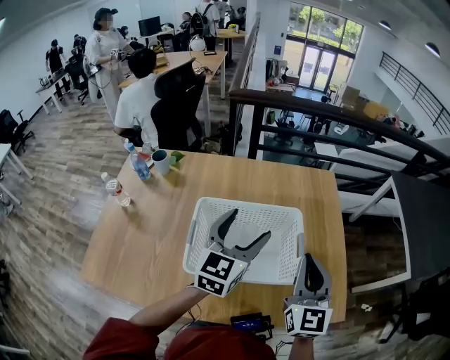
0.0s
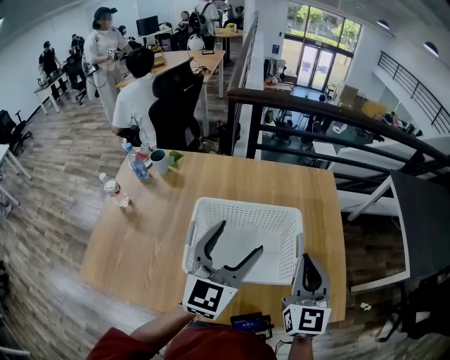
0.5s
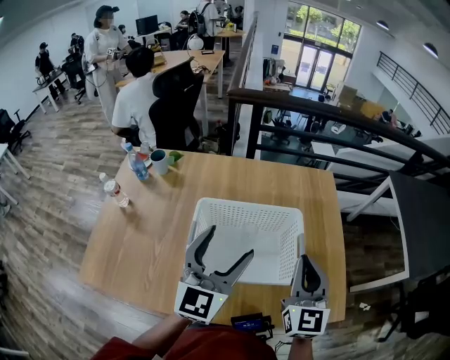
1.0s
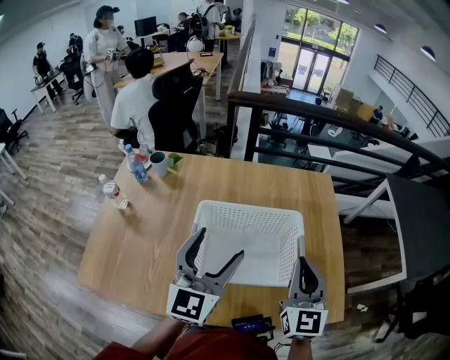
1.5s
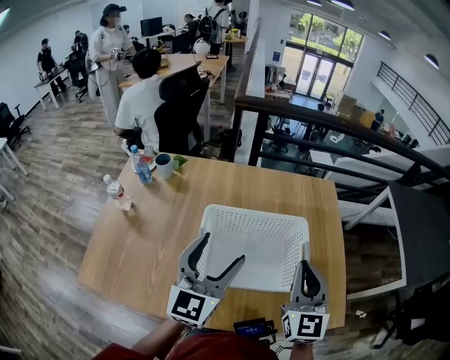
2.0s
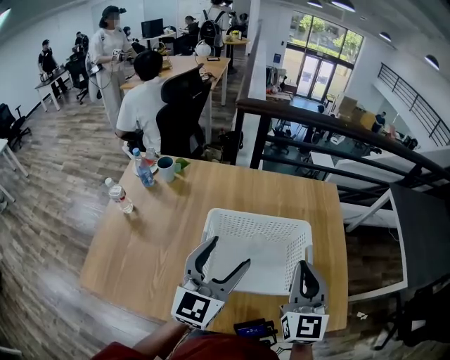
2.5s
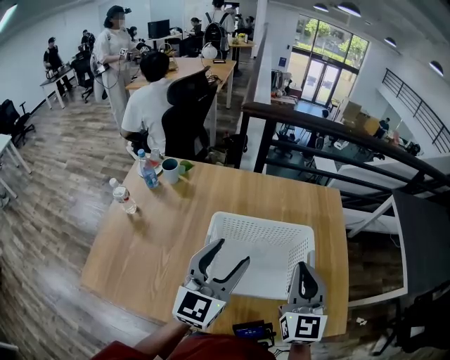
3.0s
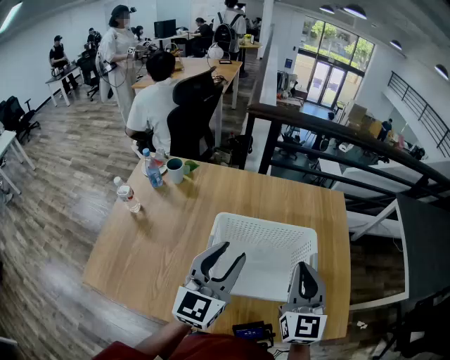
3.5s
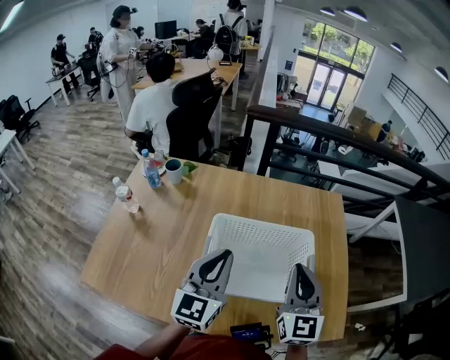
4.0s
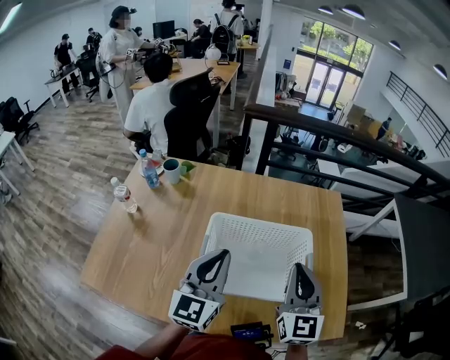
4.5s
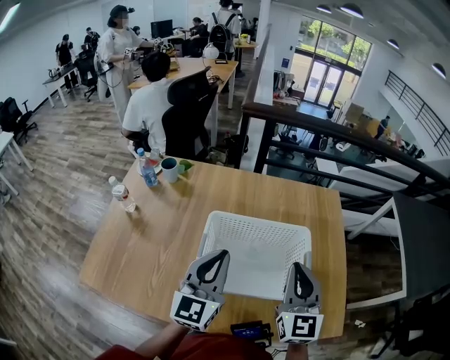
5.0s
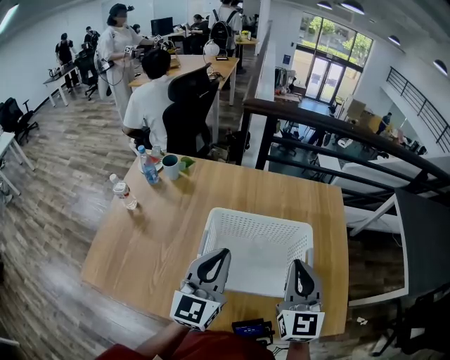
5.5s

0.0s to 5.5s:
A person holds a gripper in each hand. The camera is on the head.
0.0s to 2.0s: The left gripper moves to the left and backward, some 10 cm.
2.0s to 3.5s: The left gripper closes up.
3.5s to 5.5s: The left gripper closes up.

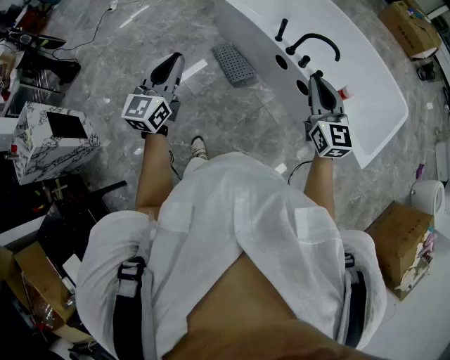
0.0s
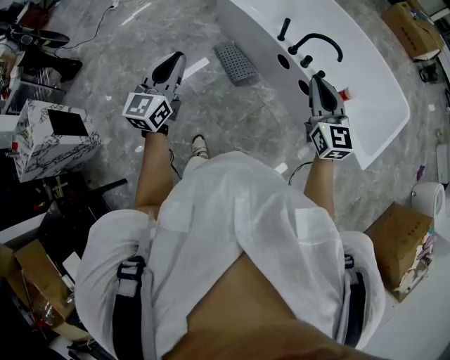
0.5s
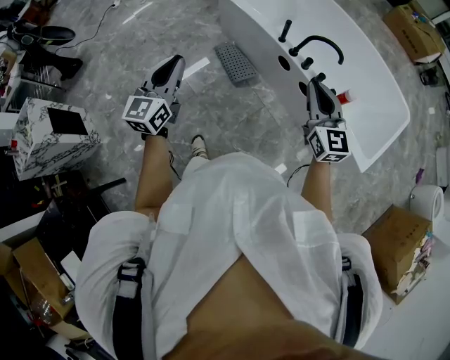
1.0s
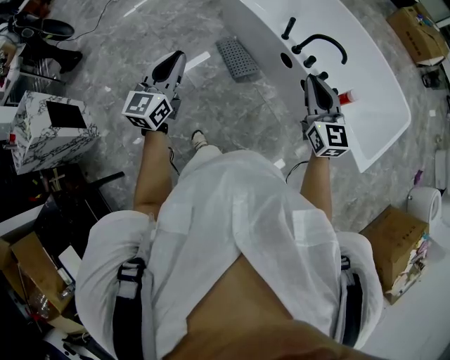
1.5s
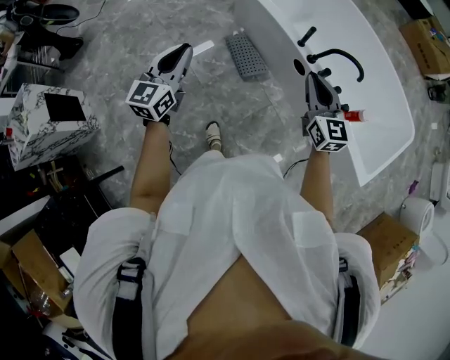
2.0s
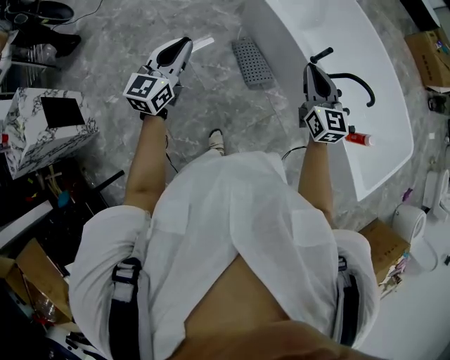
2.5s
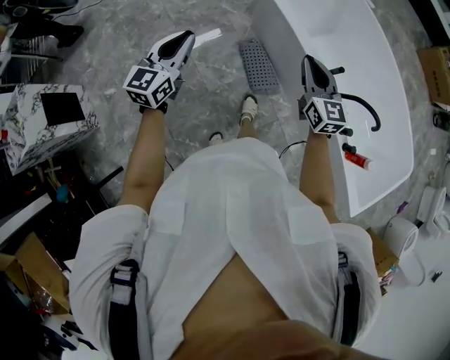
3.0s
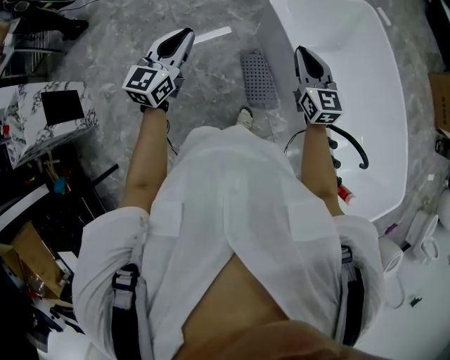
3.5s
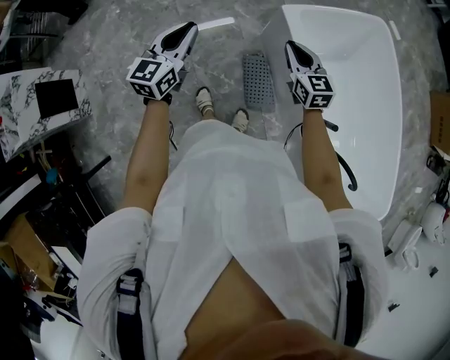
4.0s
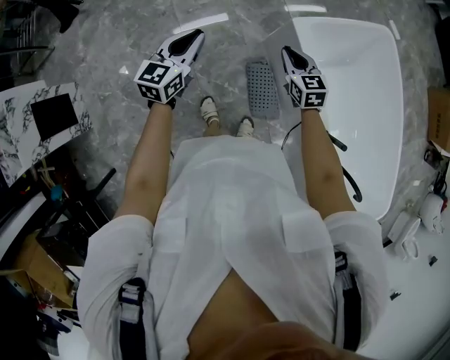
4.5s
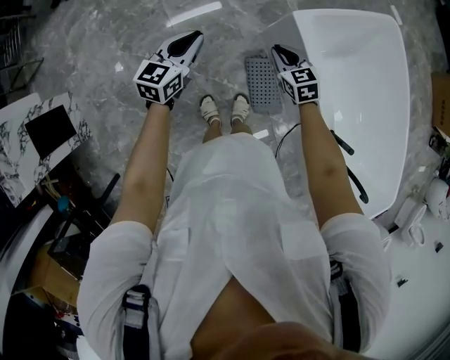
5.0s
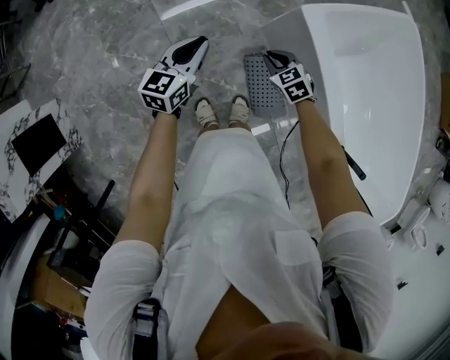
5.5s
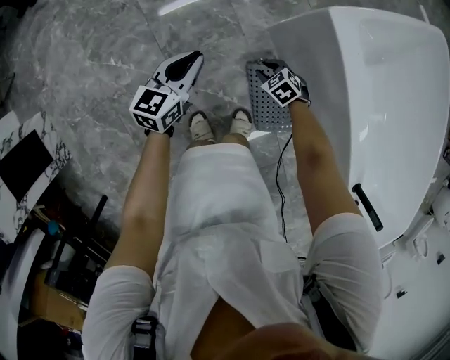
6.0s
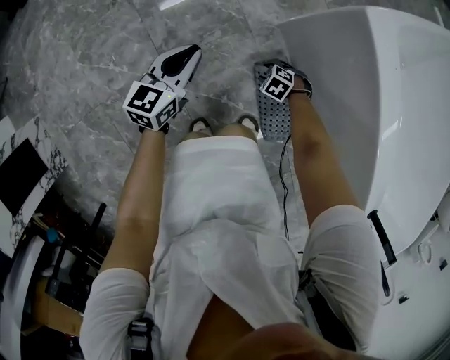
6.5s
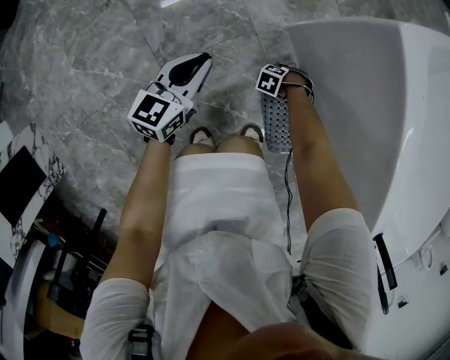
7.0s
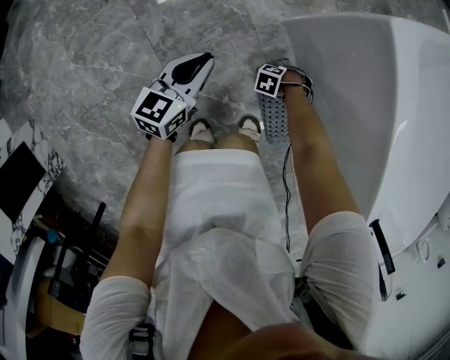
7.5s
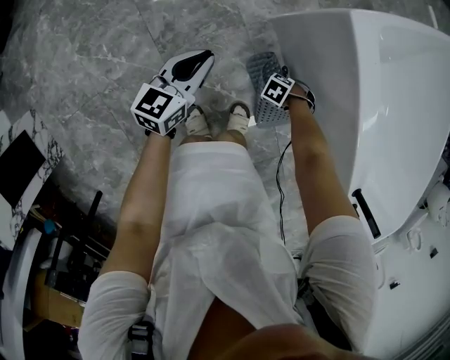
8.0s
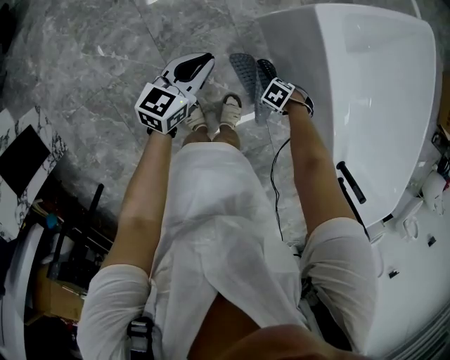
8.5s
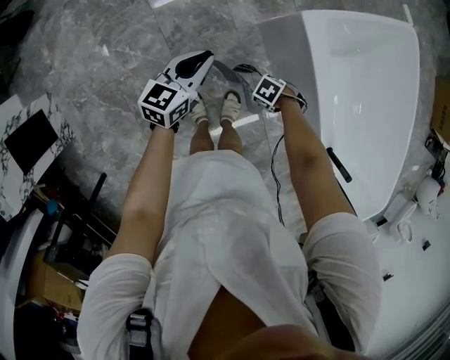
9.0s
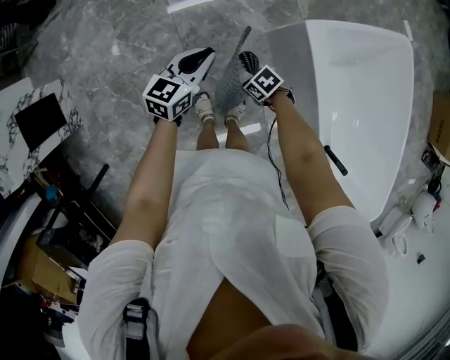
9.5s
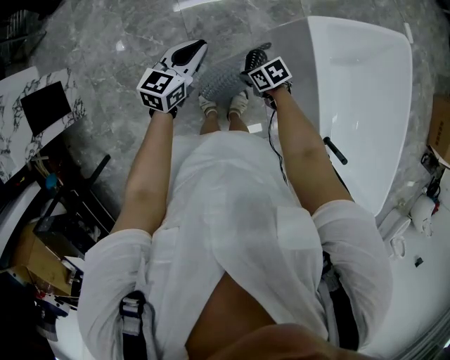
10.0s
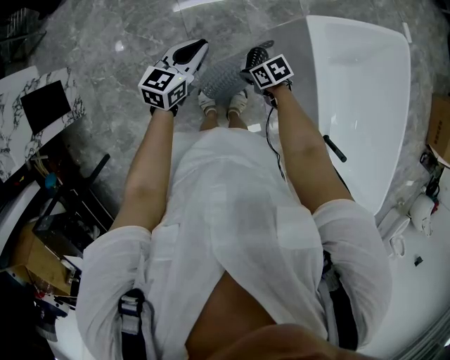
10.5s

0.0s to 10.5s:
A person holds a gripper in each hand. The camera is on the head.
0.0s to 2.0s: The left gripper is displaced forward and to the left by some 10 cm; the right gripper heads forward, to the left and downward, covering some 15 cm.
2.0s to 4.0s: The pair of grippers is taken forward, some 50 cm. The right gripper turns by about 30 degrees.
4.0s to 6.5s: The grippers both shift downward by approximately 60 cm. The right gripper tilts its fingers roughly 50 degrees downward, and opens. Meanwhile the left gripper turns by about 20 degrees.
6.5s to 8.5s: The grippers both shift upward by some 20 cm. The right gripper turns by some 30 degrees, and closes.
8.5s to 10.5s: Both grippers move upward, approximately 25 cm. The right gripper rotates approximately 40 degrees.

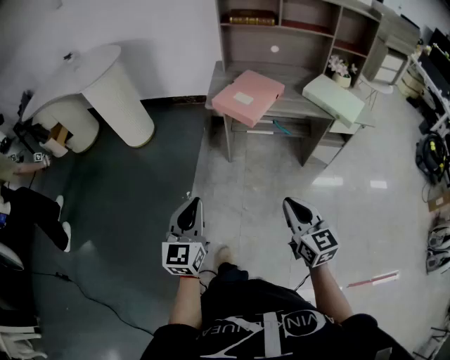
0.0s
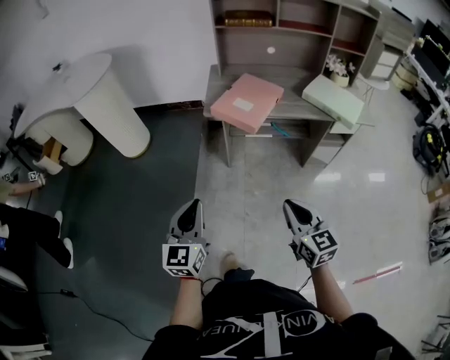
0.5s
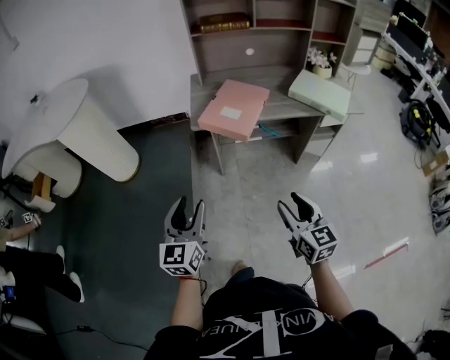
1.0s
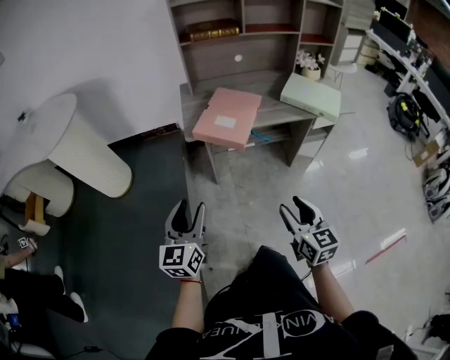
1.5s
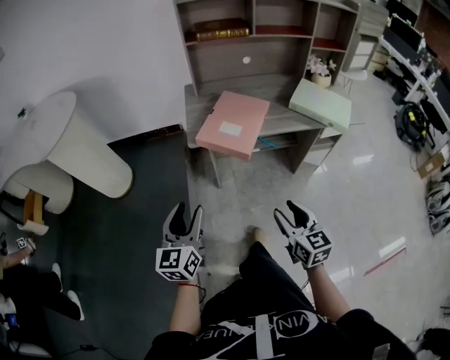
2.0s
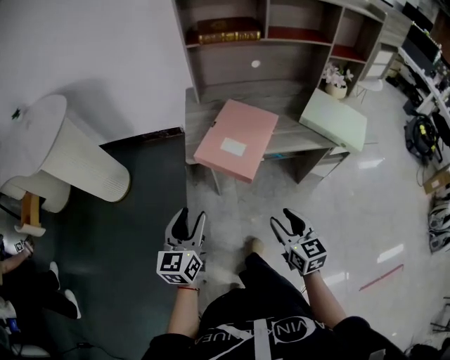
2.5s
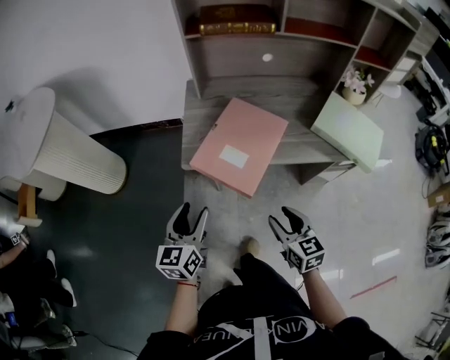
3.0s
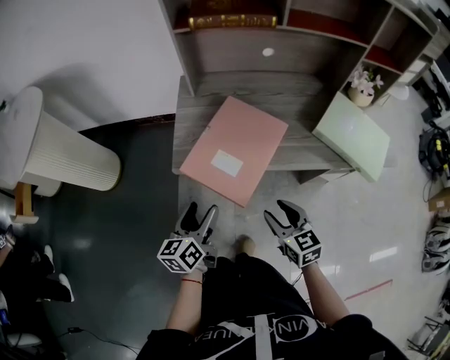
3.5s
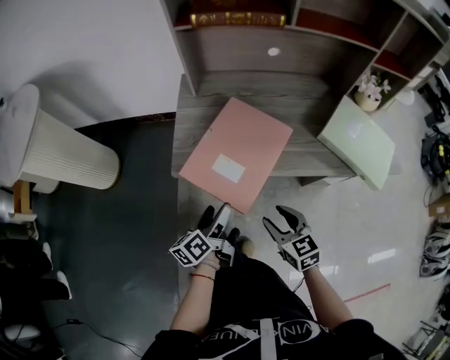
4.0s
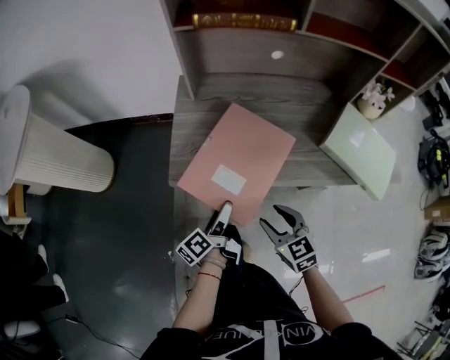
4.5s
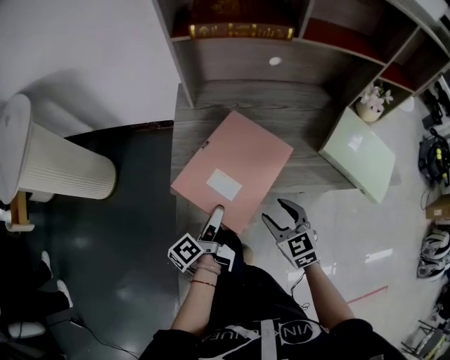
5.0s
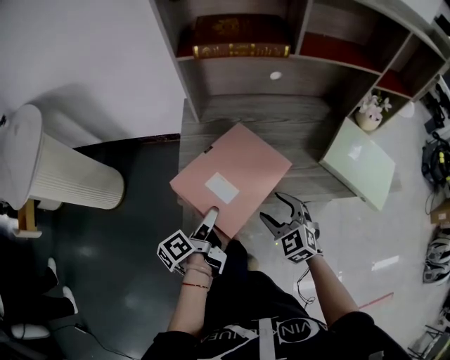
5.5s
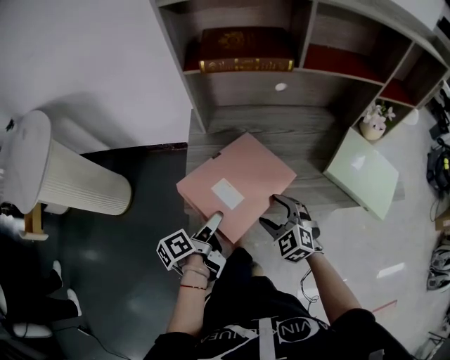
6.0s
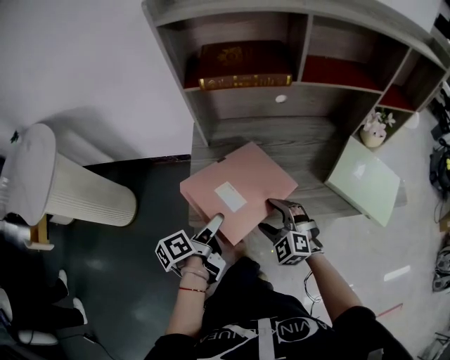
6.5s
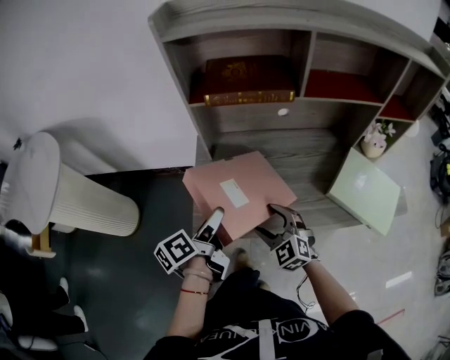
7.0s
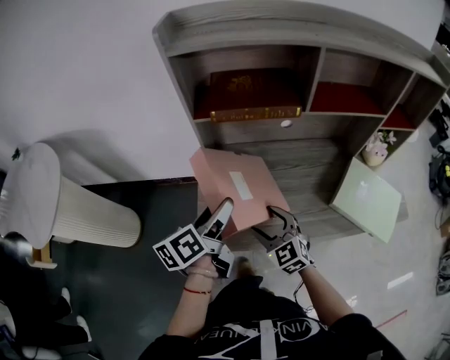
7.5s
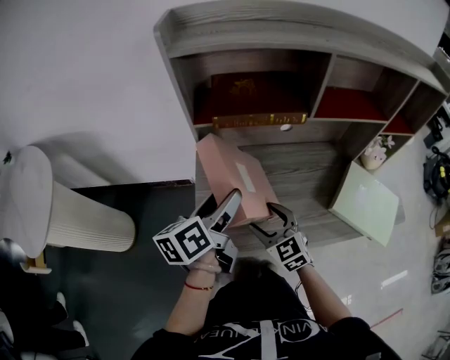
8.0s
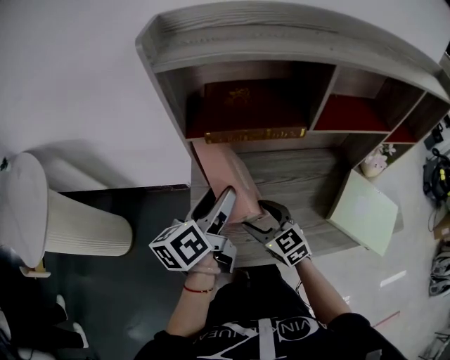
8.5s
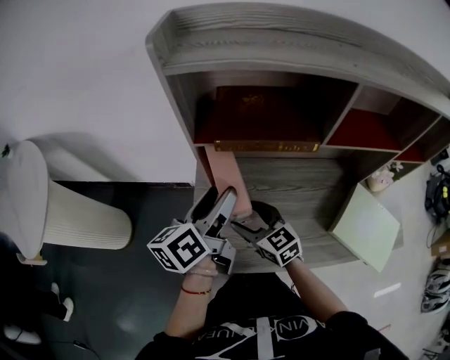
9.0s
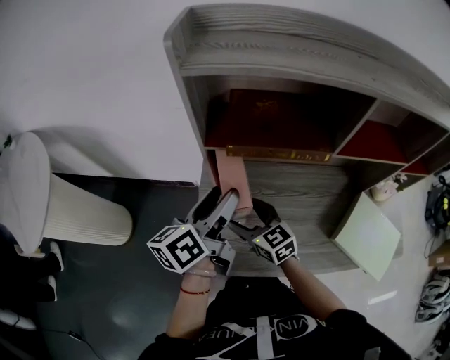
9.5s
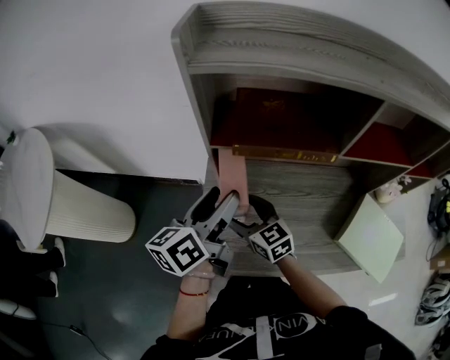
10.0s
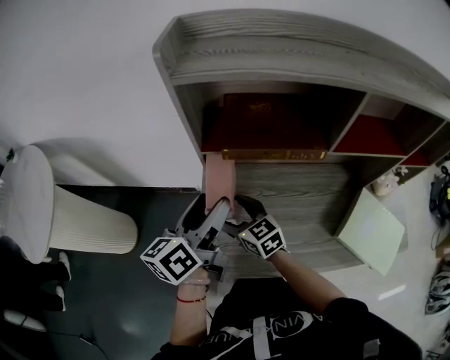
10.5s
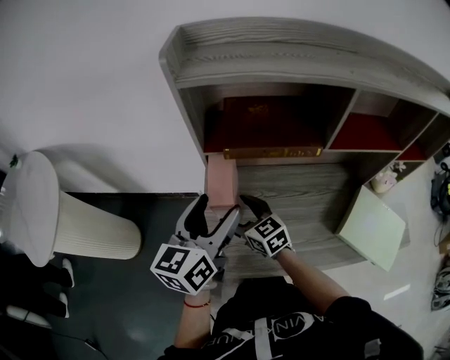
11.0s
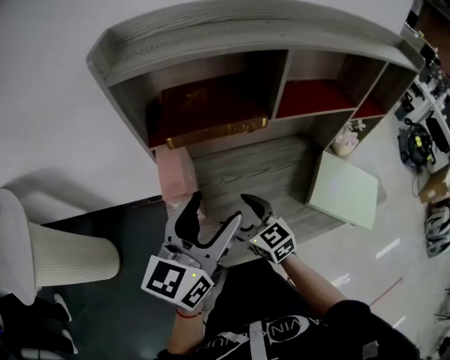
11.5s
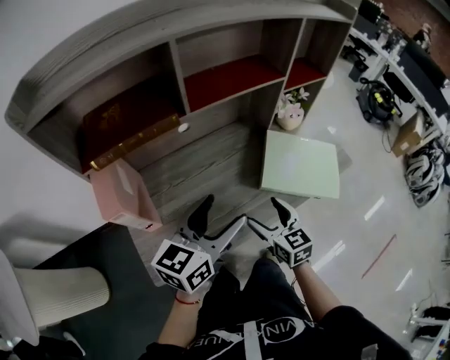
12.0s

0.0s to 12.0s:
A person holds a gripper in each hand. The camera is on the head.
0.0s to 2.0s: The grippers both shift forward by some 20 cm. The right gripper opens up; the left gripper opens.
2.0s to 4.0s: The right gripper is displaced forward and downward by approximately 25 cm, and swivels approximately 30 degrees. The left gripper heads forward, downward and to the right, covering about 35 cm, twists roughly 50 degrees counterclockwise, seen from behind, and opens up.
4.0s to 6.0s: The left gripper shifts about 10 cm forward and upward, and turns by about 20 degrees. Meanwhile the right gripper is displaced forward by some 15 cm, and rotates roughly 40 degrees.
6.0s to 8.0s: The left gripper goes roughly 25 cm upward and forward, and rotates about 30 degrees. Meanwhile the right gripper goes approximately 15 cm forward and upward, and swivels some 20 degrees.
8.0s to 10.0s: The left gripper shifts some 5 cm forward. Meanwhile the right gripper is displaced forward and to the left by approximately 15 cm, and swivels approximately 20 degrees.
10.0s to 12.0s: The left gripper goes upward and returns, about 5 cm each way, and turns by roughly 50 degrees. Meanwhile the right gripper changes place by roughly 35 cm, and swivels roughly 40 degrees.
